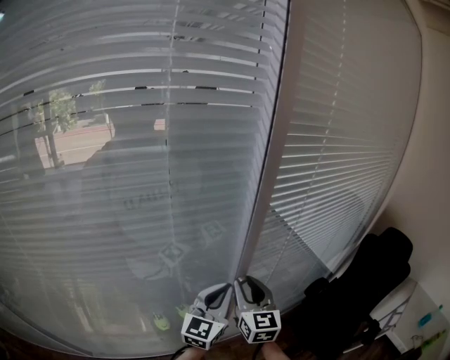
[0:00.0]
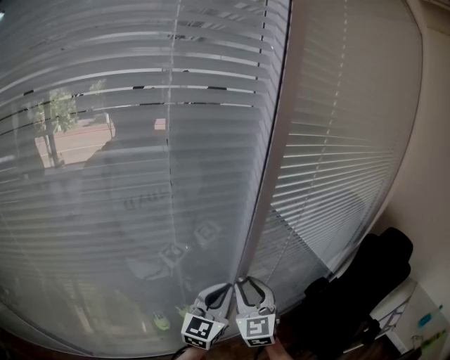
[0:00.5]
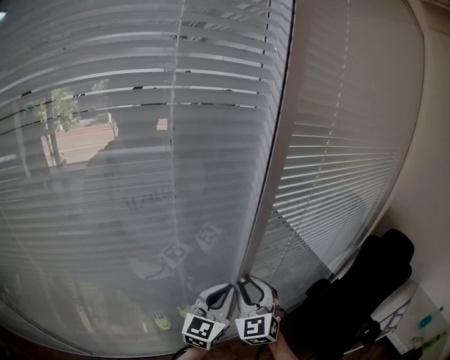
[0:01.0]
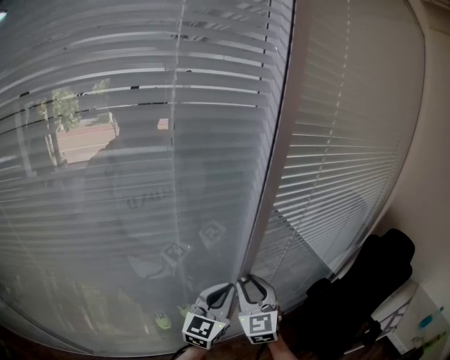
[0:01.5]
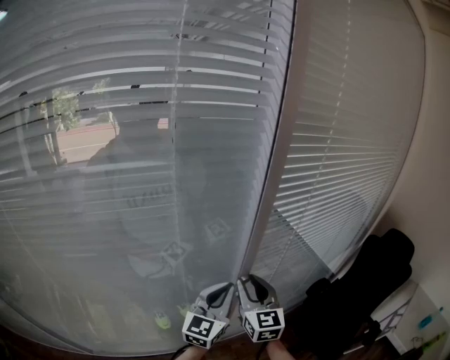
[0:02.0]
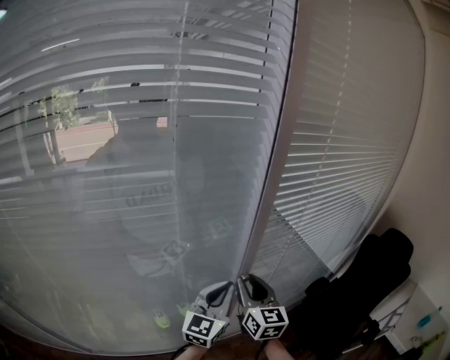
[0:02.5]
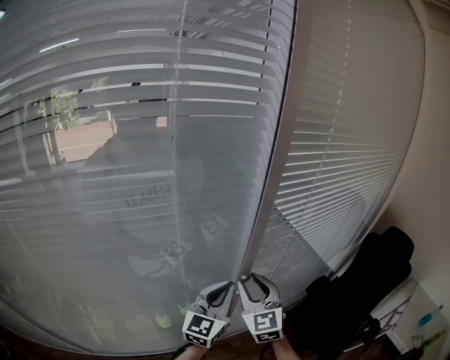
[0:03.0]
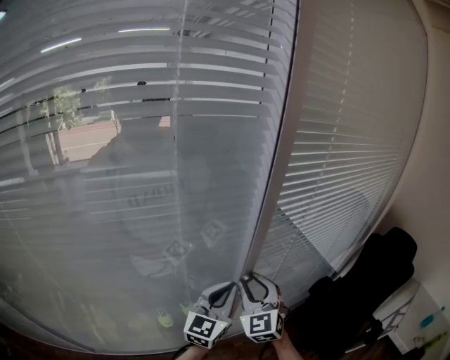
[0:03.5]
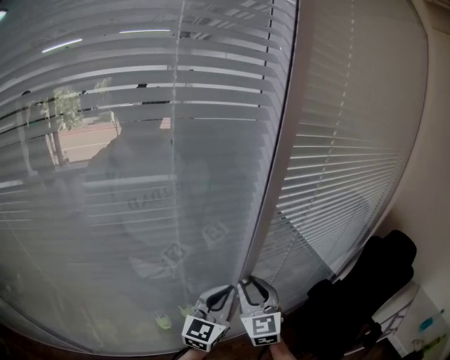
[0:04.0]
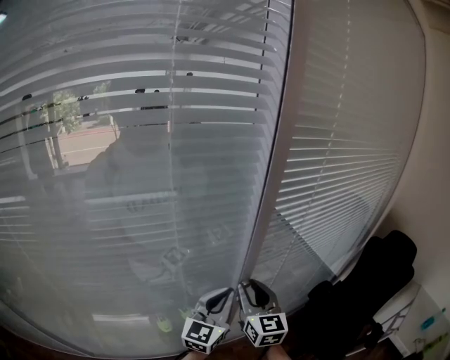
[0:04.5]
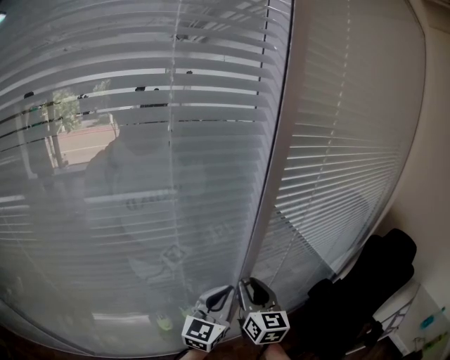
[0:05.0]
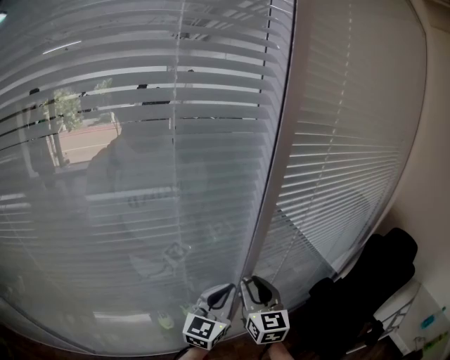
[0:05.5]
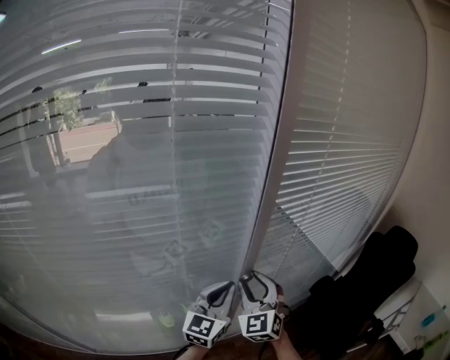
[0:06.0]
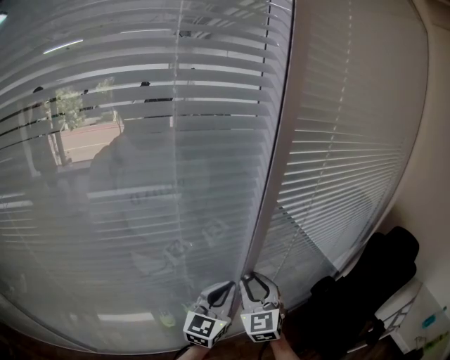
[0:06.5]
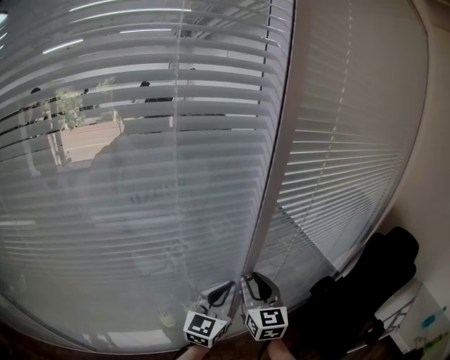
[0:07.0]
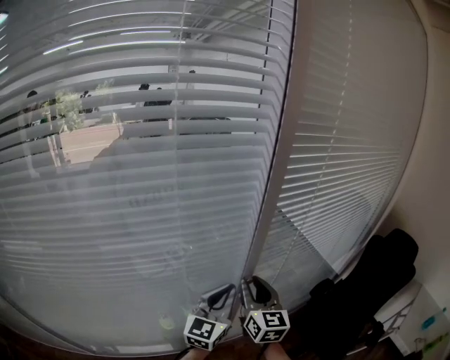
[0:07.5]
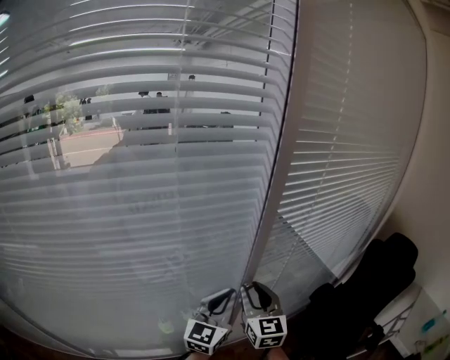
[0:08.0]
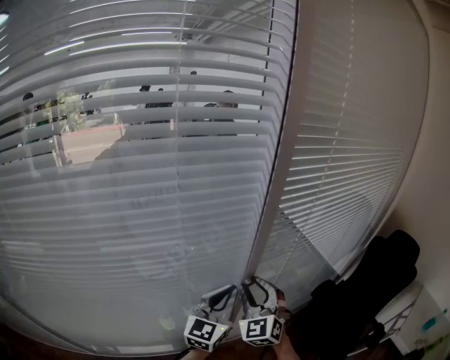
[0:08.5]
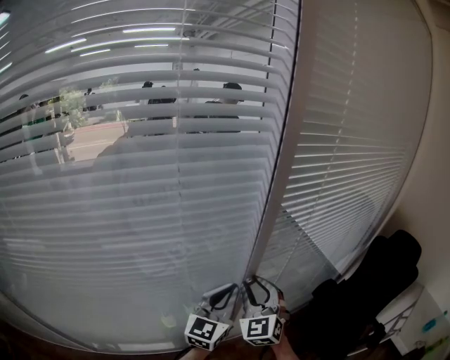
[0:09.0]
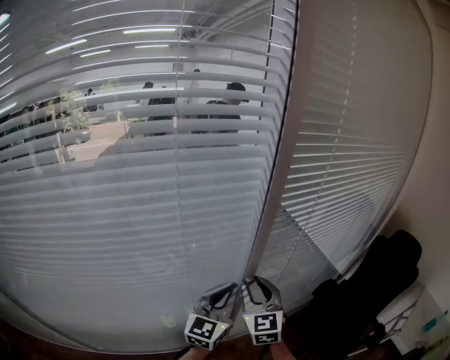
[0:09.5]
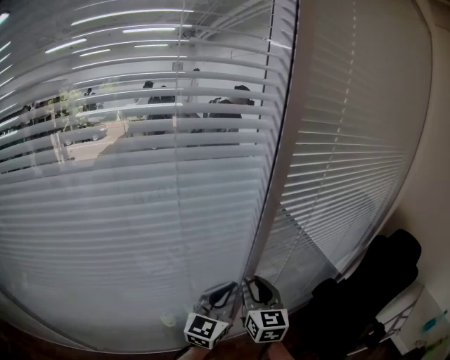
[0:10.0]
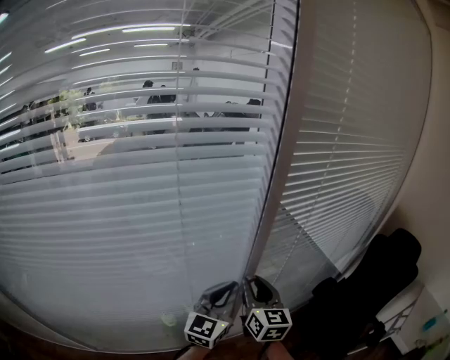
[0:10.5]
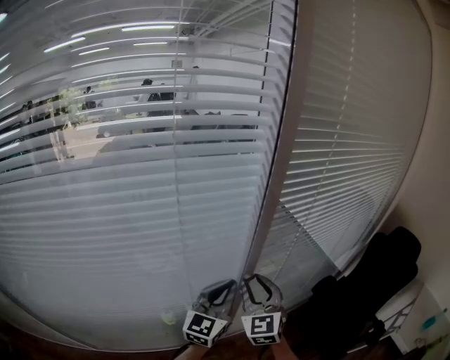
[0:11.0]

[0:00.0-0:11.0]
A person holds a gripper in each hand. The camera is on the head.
0:02.0 to 0:03.5: The right gripper swivels approximately 30 degrees.
0:03.5 to 0:05.5: The right gripper turns by some 30 degrees.
0:07.5 to 0:09.0: The right gripper rolls counterclockwise, seen from behind, by approximately 40 degrees.

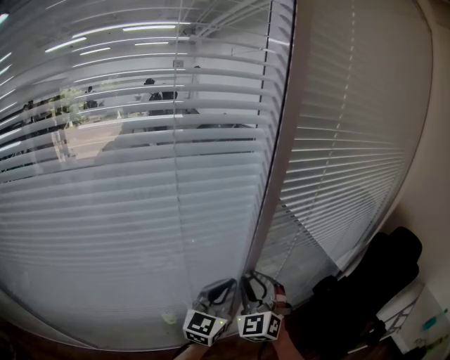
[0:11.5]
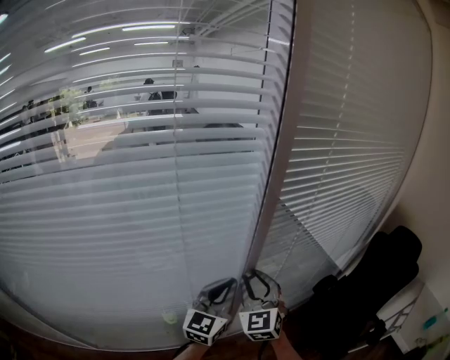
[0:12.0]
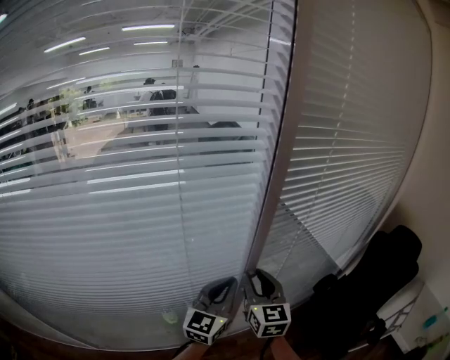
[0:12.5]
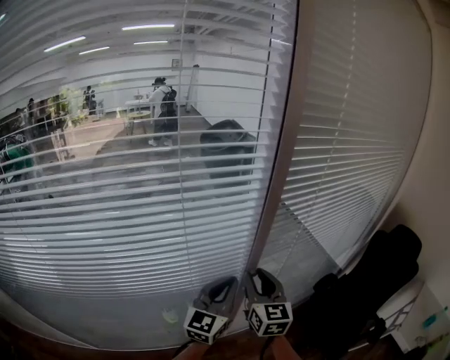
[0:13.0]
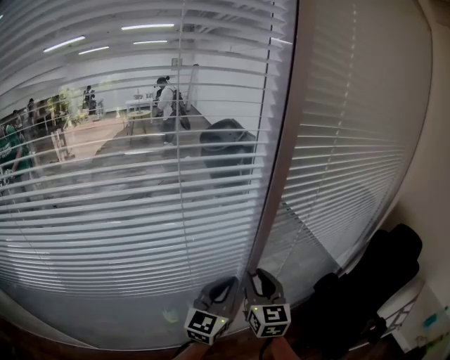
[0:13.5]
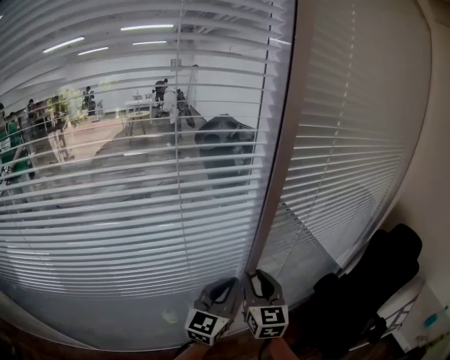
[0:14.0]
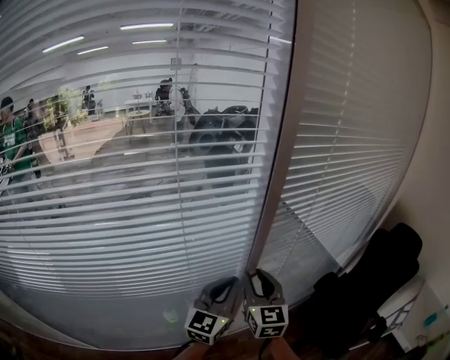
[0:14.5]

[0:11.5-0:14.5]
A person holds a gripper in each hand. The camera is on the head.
0:11.5 to 0:13.0: The right gripper twists about 50 degrees clockwise, seen from behind.
0:13.0 to 0:14.5: The grippers make only small movements.

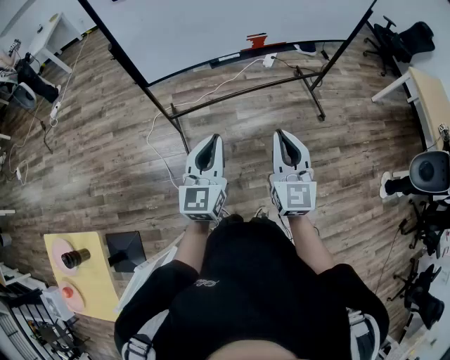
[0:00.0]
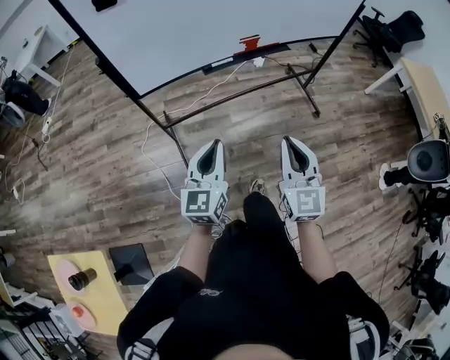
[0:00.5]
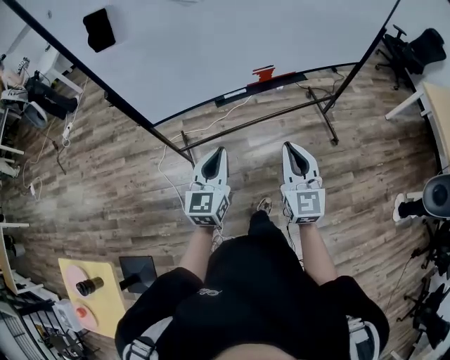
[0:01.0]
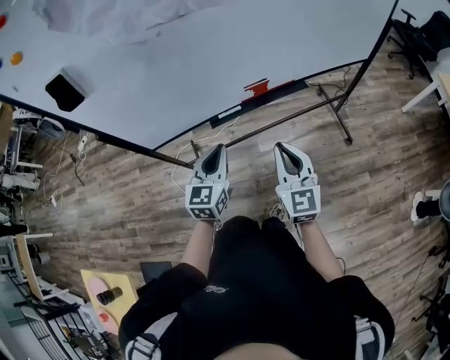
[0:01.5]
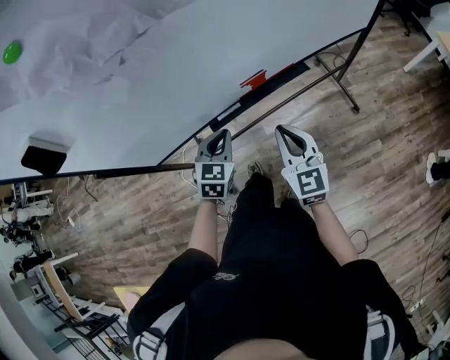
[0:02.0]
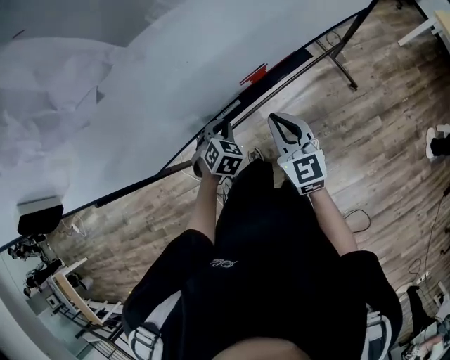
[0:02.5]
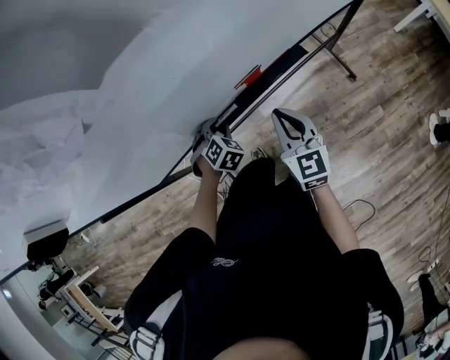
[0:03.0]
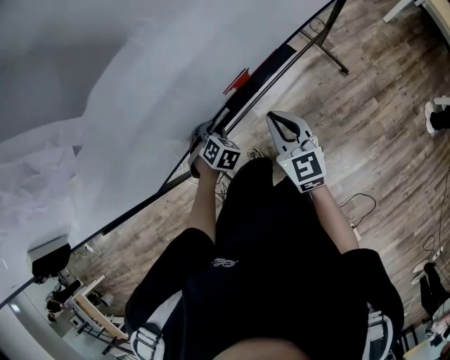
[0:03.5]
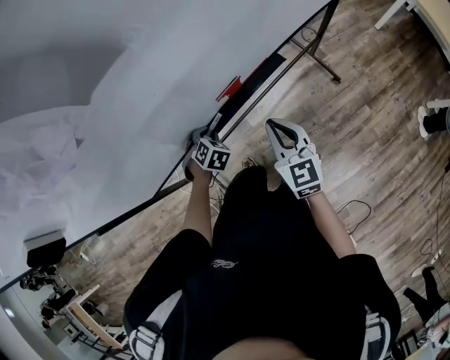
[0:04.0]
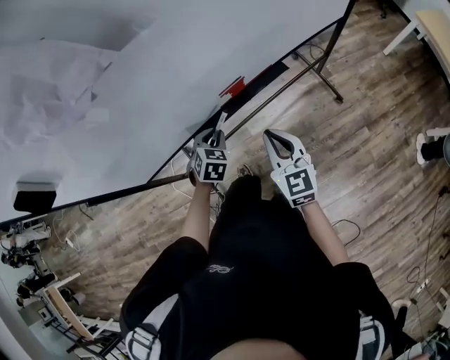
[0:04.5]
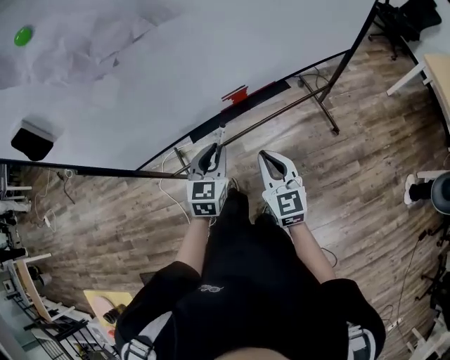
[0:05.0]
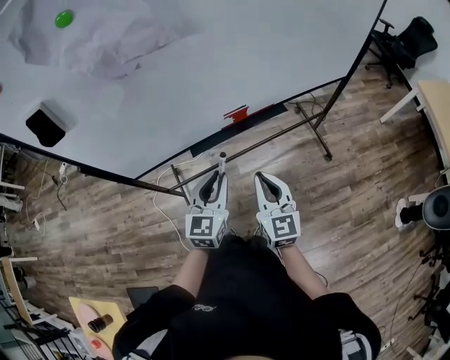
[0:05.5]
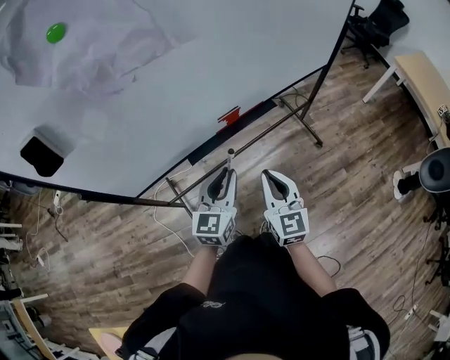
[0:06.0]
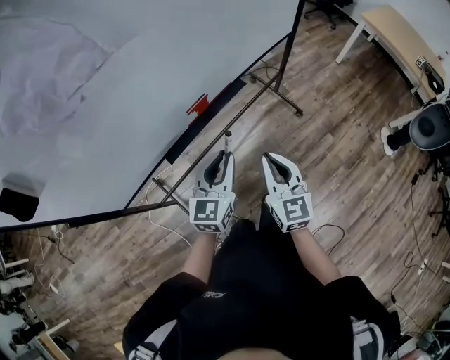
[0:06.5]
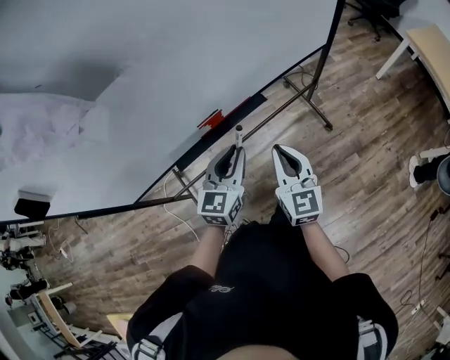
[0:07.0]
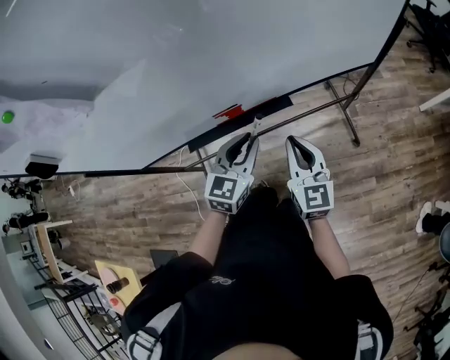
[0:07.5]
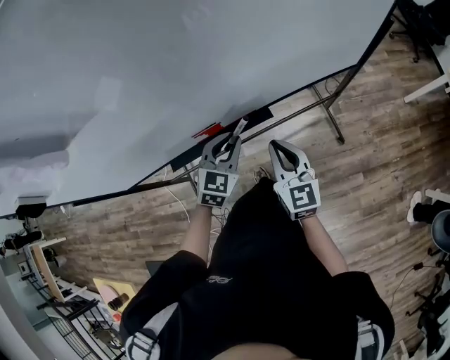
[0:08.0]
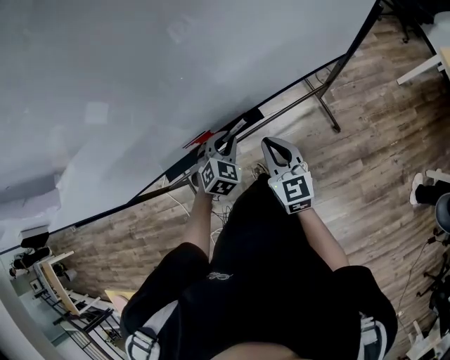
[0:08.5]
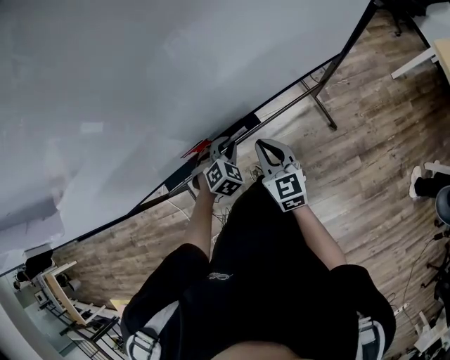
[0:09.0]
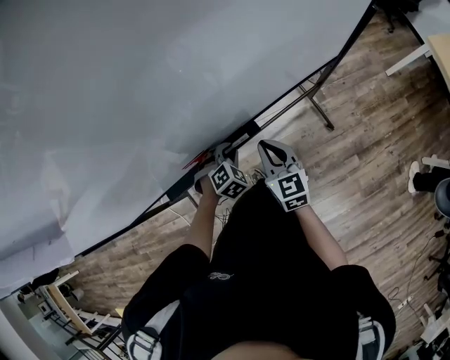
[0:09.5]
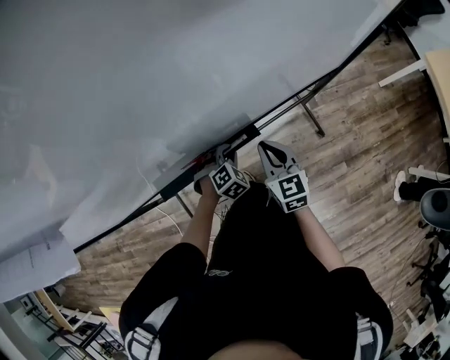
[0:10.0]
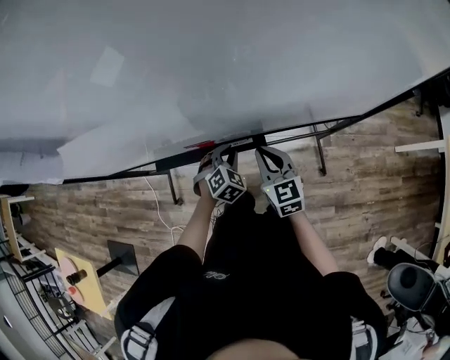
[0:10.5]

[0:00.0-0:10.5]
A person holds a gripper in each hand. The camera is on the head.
0:00.0 to 0:02.0: Both grippers move forward, some 40 cm. The left gripper angles its fingers downward, by about 30 degrees.
0:02.0 to 0:04.0: The left gripper travels downward and forward by roughly 20 cm, and angles its fingers downward, by some 30 degrees. The right gripper travels forward and downward by approximately 10 cm.
0:04.0 to 0:06.5: The right gripper shifts some 15 cm backward and upward. Meanwhile the left gripper moves upward, backward and to the right, some 30 cm, and angles its fingers upward, by about 50 degrees.
0:06.5 to 0:08.5: The right gripper goes approximately 30 cm forward and to the right, and swivels roughly 20 degrees, while the left gripper is displaced forward, downward and to the right by some 30 cm, and tips its fingers downward by about 40 degrees.
0:08.5 to 0:10.5: The right gripper moves forward, about 5 cm, and turns by about 20 degrees.

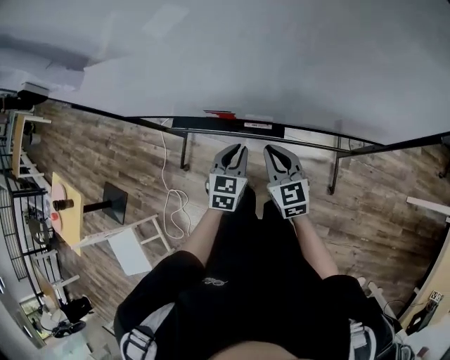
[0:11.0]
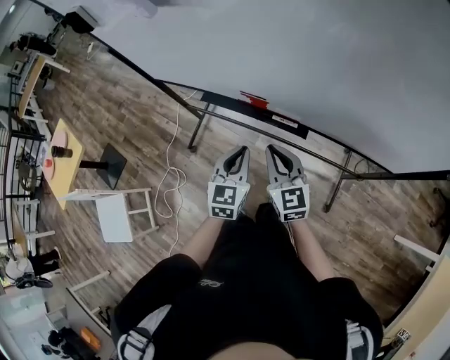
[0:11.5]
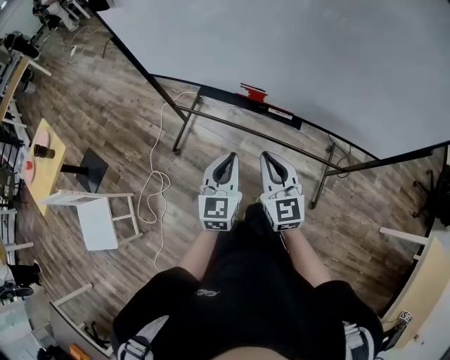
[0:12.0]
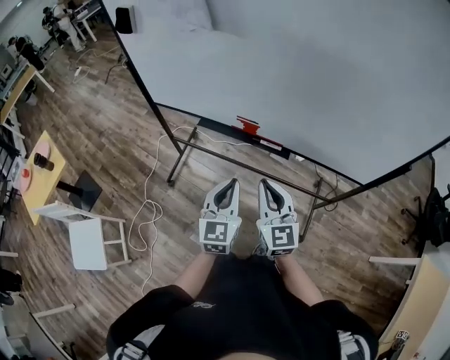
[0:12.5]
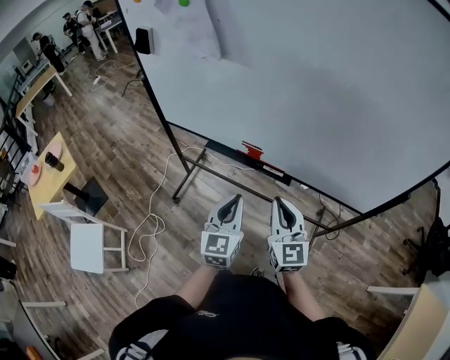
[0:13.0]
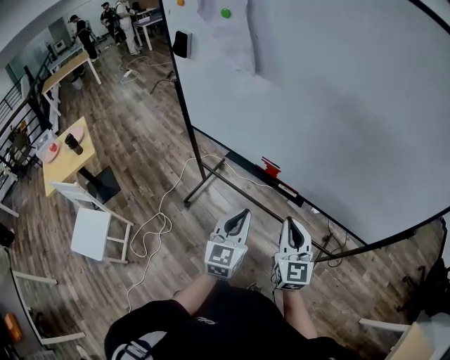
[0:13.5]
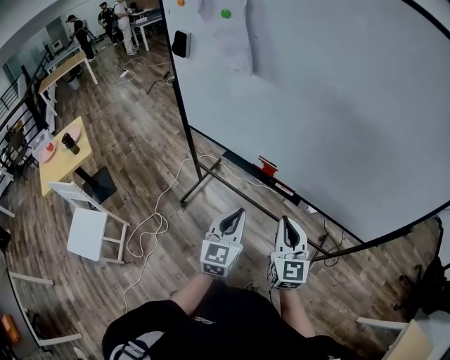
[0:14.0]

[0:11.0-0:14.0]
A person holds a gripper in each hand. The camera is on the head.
0:11.0 to 0:12.5: Both grippers move backward, upward and to the left, some 25 cm. The left gripper turns by roughly 30 degrees.
0:12.5 to 0:14.0: The grippers make only small movements.
